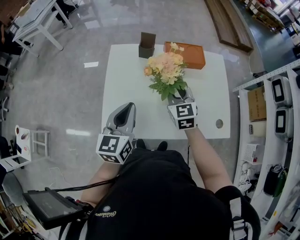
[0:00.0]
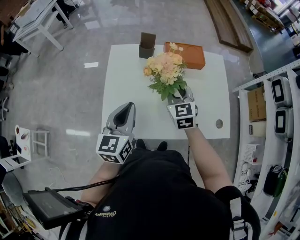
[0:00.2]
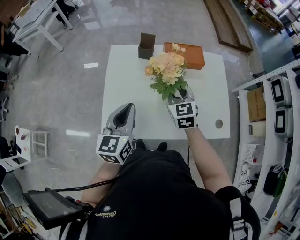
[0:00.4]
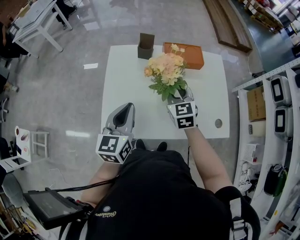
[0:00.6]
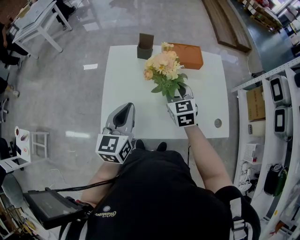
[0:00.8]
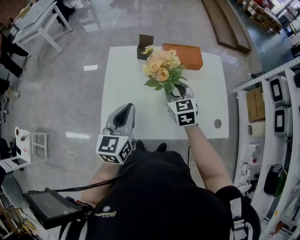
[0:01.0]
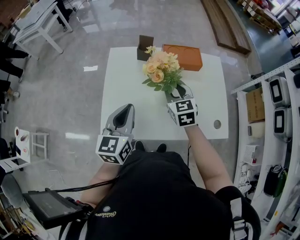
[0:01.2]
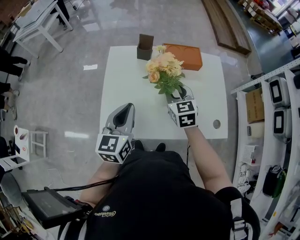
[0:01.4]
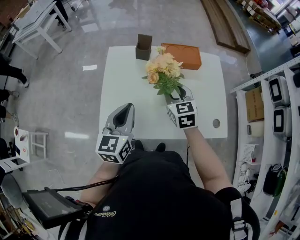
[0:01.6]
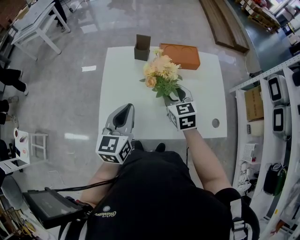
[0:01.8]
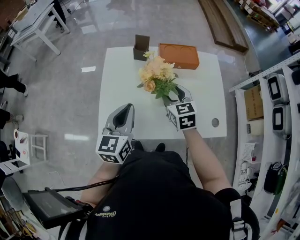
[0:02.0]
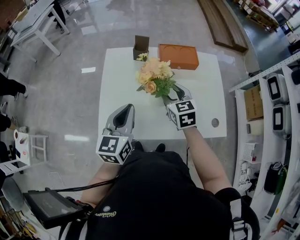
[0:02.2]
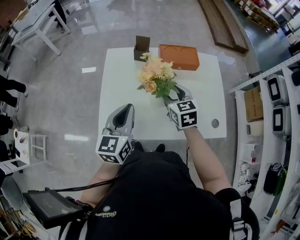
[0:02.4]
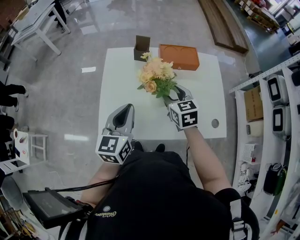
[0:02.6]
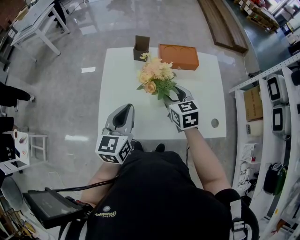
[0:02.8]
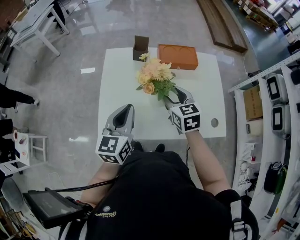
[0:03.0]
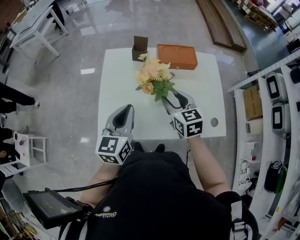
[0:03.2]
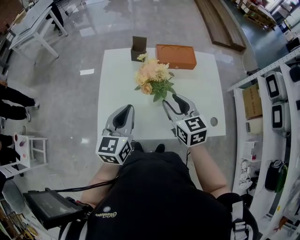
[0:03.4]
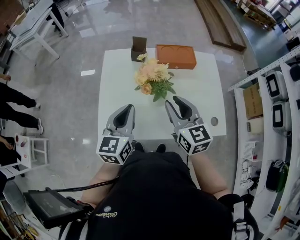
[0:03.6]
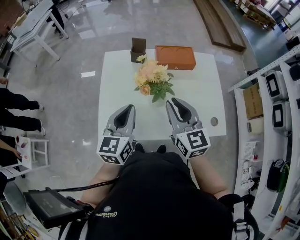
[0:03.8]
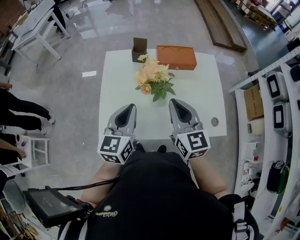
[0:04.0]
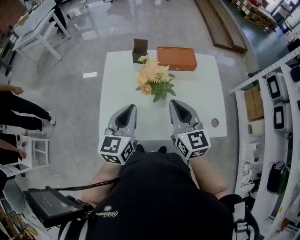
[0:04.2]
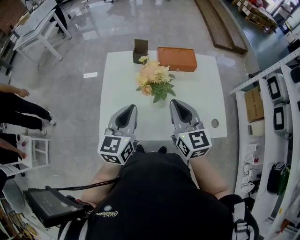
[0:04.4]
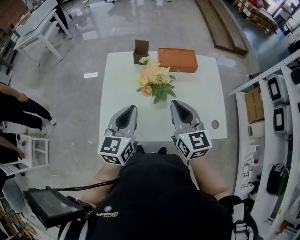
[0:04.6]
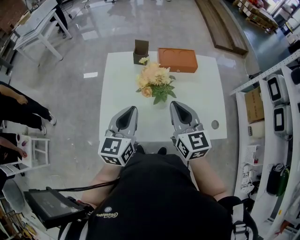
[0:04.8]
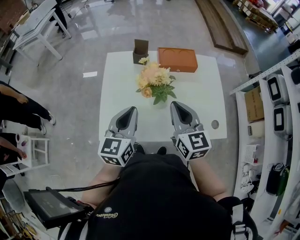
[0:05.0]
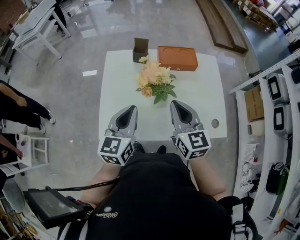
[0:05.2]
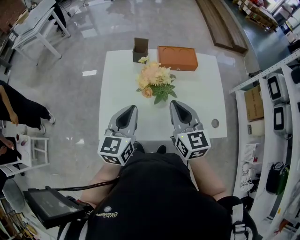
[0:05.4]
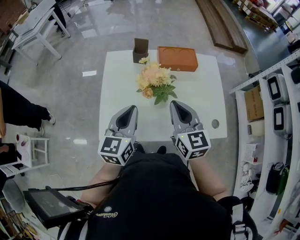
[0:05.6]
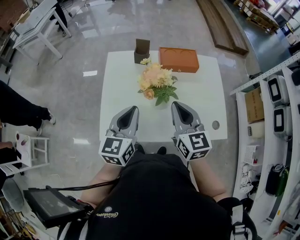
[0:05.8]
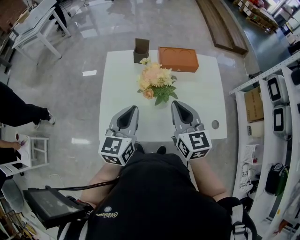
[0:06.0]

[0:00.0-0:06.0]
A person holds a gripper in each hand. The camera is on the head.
0:00.0 to 0:01.6: The right gripper opens its fingers.
0:01.6 to 0:03.0: The grippers move only a little.
0:03.0 to 0:04.4: The right gripper shifts some 10 cm upward and backward, turns by roughly 20 degrees, and closes its fingers.
0:04.4 to 0:06.0: Both grippers stay about where they are.

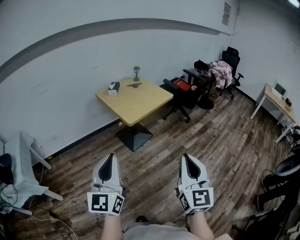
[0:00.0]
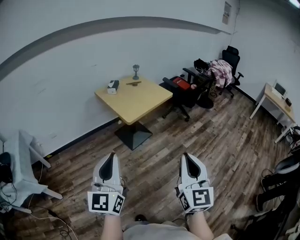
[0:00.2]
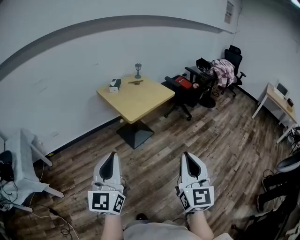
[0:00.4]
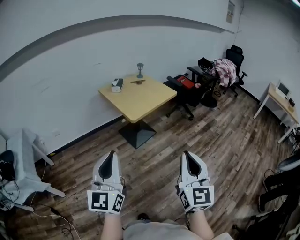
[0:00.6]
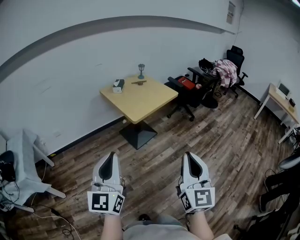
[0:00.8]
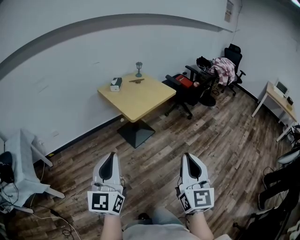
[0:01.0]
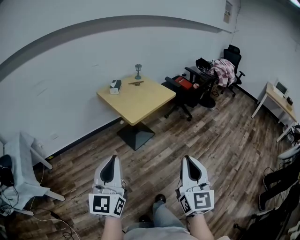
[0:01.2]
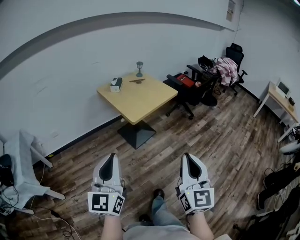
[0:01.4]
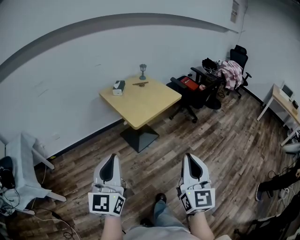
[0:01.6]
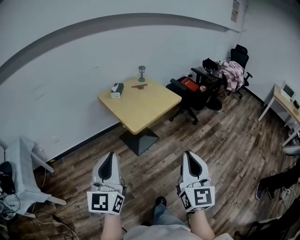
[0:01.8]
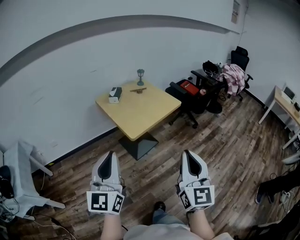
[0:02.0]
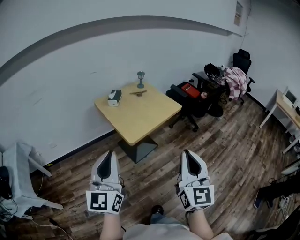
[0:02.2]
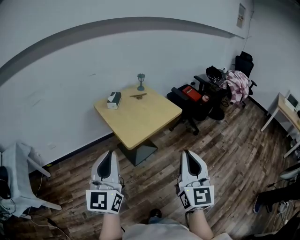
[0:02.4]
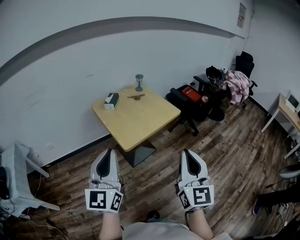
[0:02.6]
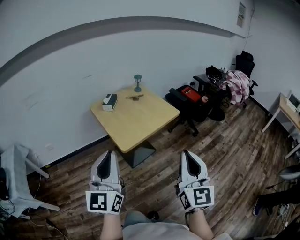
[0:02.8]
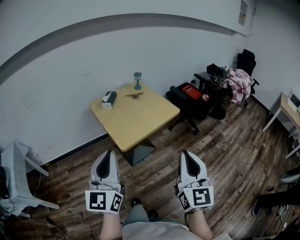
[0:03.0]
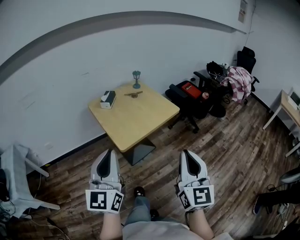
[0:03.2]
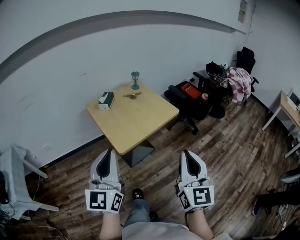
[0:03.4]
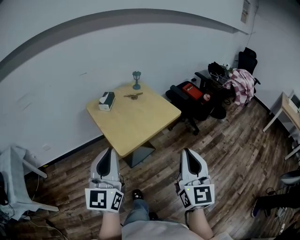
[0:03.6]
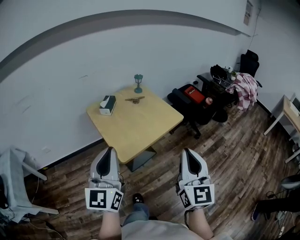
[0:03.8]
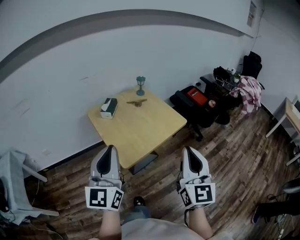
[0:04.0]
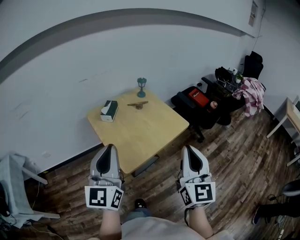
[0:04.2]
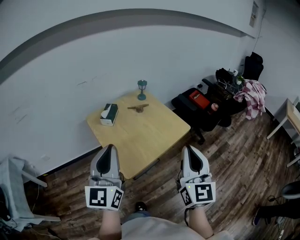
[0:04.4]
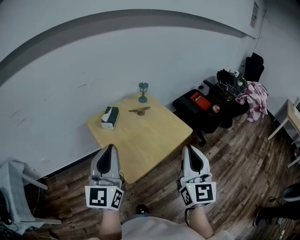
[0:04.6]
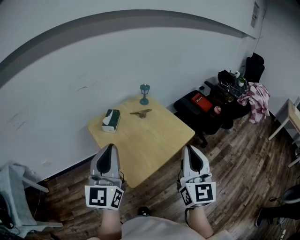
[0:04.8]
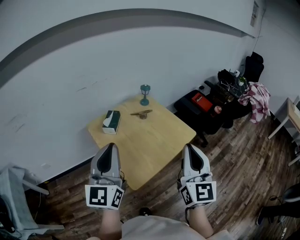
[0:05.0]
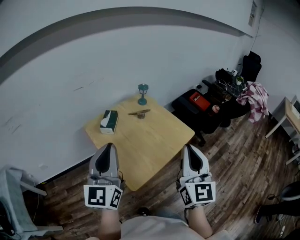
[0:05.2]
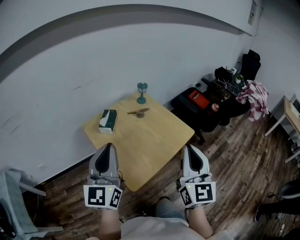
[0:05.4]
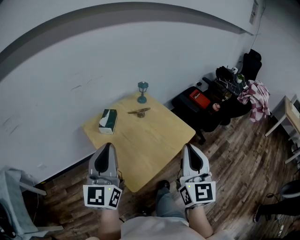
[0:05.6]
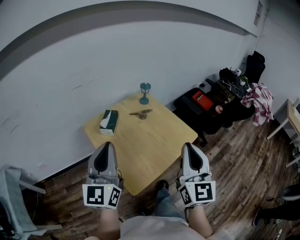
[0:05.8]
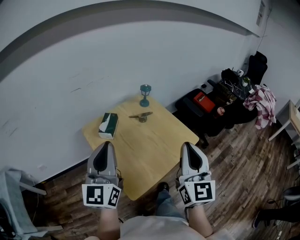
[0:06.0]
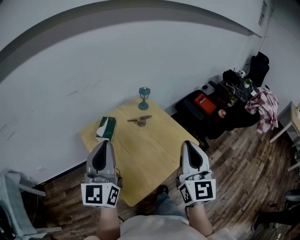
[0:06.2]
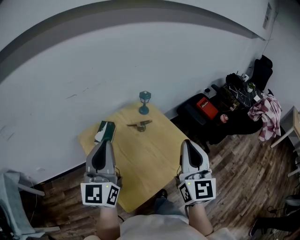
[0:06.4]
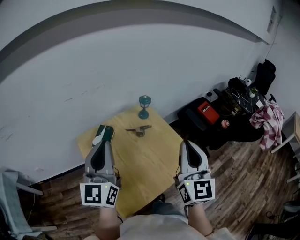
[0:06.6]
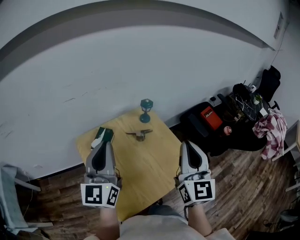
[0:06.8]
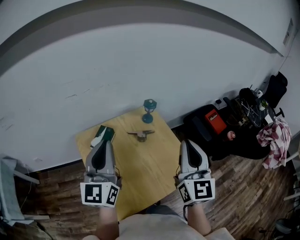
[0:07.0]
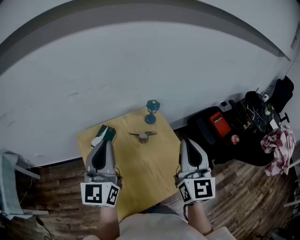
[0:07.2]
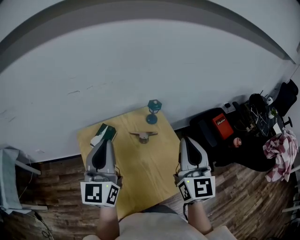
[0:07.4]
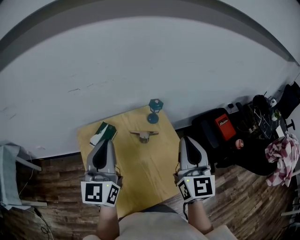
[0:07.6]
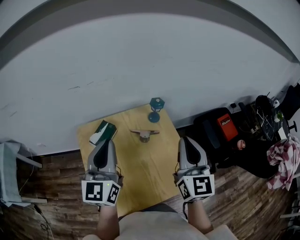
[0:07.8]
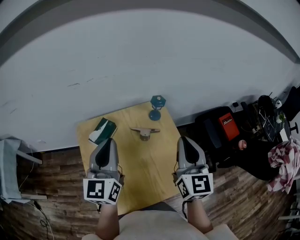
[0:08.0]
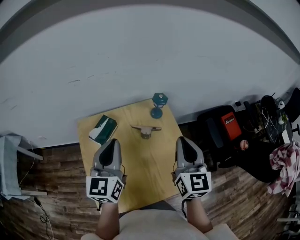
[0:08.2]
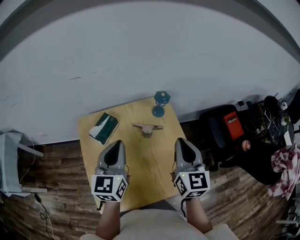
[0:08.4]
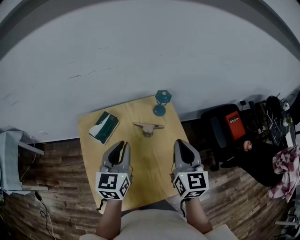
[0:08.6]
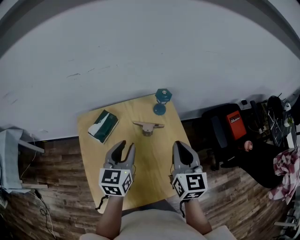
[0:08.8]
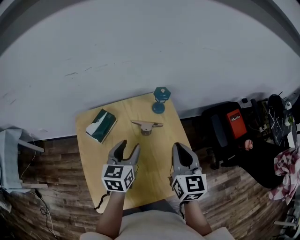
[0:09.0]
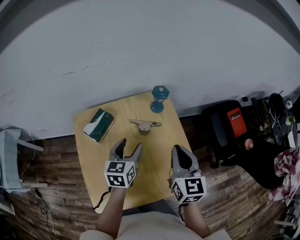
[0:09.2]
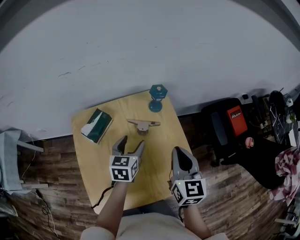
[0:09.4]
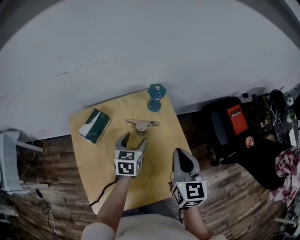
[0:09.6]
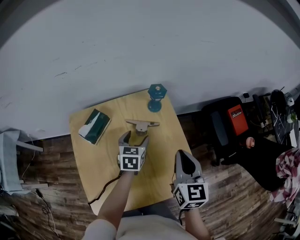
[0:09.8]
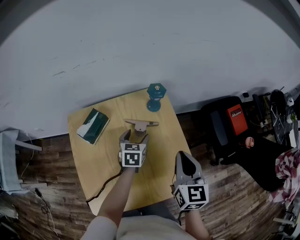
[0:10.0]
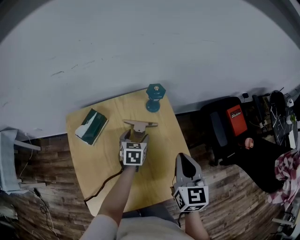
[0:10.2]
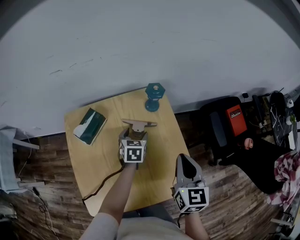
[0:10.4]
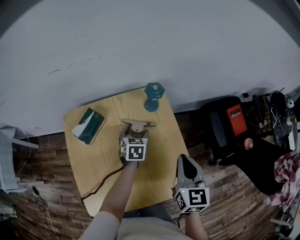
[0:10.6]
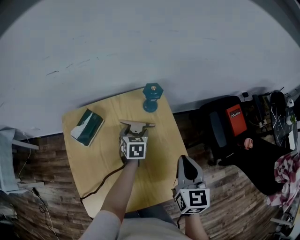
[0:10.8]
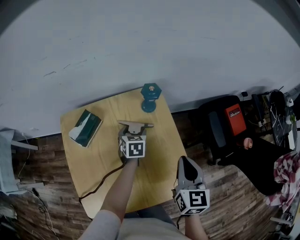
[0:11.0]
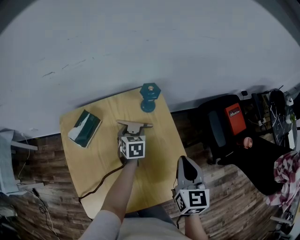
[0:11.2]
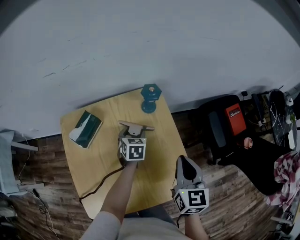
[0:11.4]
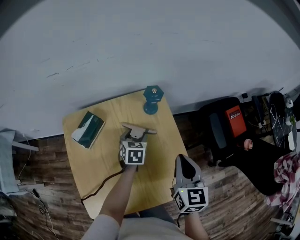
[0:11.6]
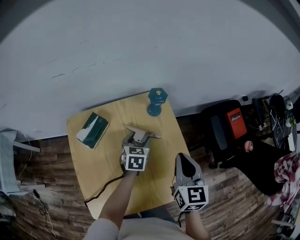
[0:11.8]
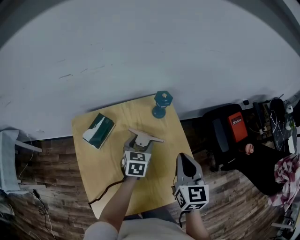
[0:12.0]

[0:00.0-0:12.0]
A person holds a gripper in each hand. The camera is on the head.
0:00.0 to 0:01.6: The grippers both shift forward by some 10 cm.
0:01.6 to 0:03.0: Both grippers travel together forward and to the right, approximately 20 cm.
0:03.0 to 0:04.4: The grippers both shift forward by some 25 cm.
0:04.4 to 0:06.0: The two grippers go some 15 cm forward.
0:06.0 to 0:07.6: The grippers both shift forward by some 25 cm.
0:07.6 to 0:09.0: The right gripper travels downward by some 15 cm, and turns by approximately 20 degrees. Meanwhile the left gripper travels downward and to the right by approximately 20 cm, tilts its fingers approximately 30 degrees downward, and opens.
0:09.0 to 0:10.4: The right gripper is displaced to the right by about 5 cm. The left gripper goes some 20 cm downward and forward, changes its angle by approximately 20 degrees, and opens its fingers.
0:10.4 to 0:12.0: The left gripper travels upward by approximately 5 cm.

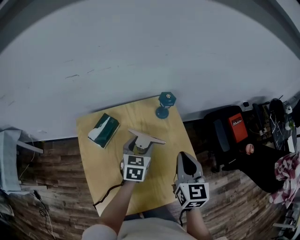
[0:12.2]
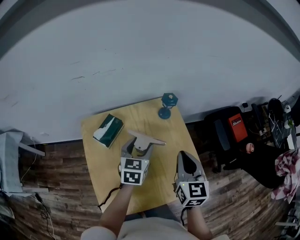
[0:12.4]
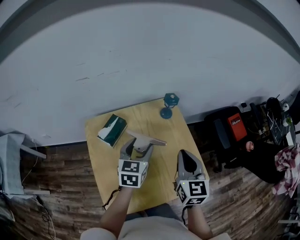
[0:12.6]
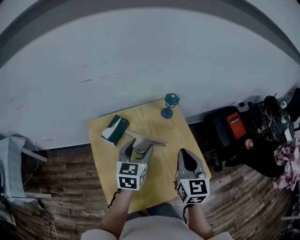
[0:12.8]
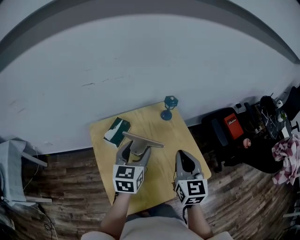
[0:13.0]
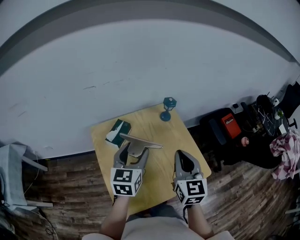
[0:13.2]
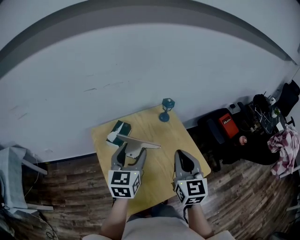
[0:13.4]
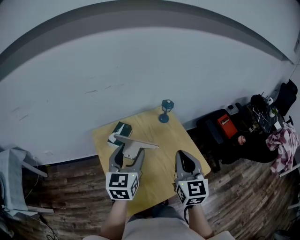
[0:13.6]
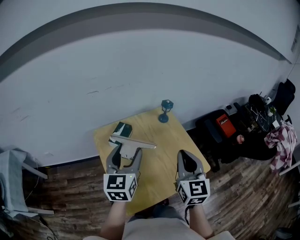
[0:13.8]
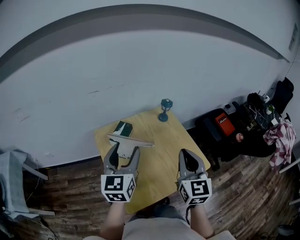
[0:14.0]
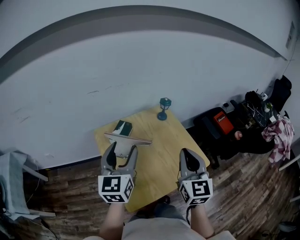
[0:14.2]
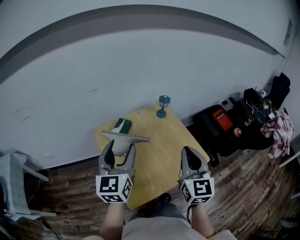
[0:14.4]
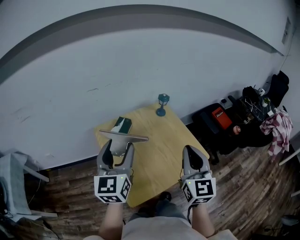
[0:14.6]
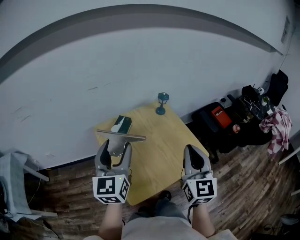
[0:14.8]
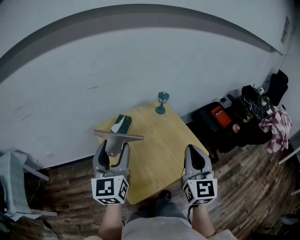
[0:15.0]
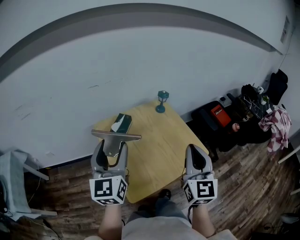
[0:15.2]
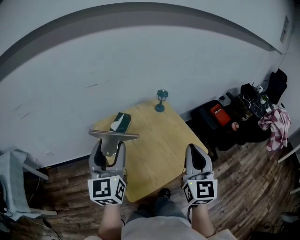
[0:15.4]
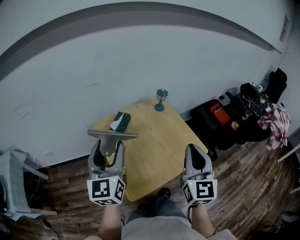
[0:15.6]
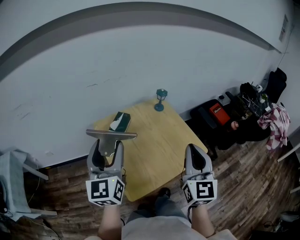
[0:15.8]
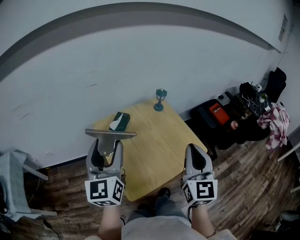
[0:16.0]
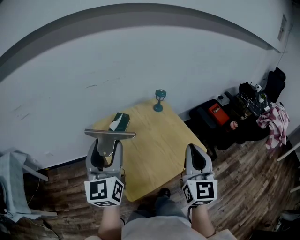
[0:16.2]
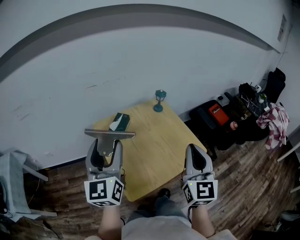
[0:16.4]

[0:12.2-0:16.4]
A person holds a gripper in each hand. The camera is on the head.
0:12.2 to 0:13.6: The right gripper shifts roughly 20 cm backward, upward and to the left, while the left gripper moves upward, backward and to the left, some 25 cm, and swivels roughly 20 degrees.
0:13.6 to 0:15.0: The right gripper shifts about 10 cm backward and upward; the left gripper shifts roughly 15 cm backward, upward and to the left.
0:15.0 to 0:16.4: The grippers move only a little.

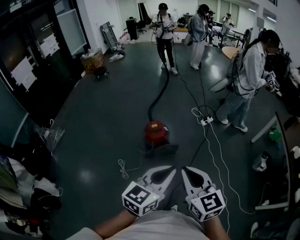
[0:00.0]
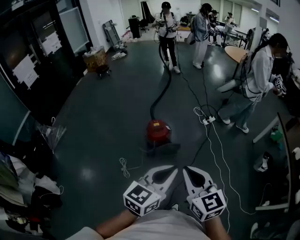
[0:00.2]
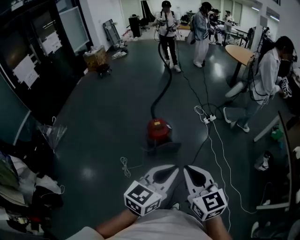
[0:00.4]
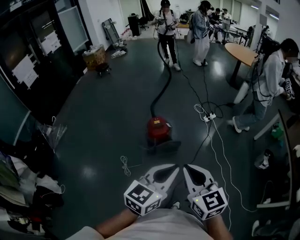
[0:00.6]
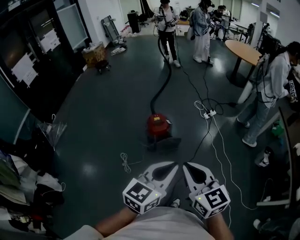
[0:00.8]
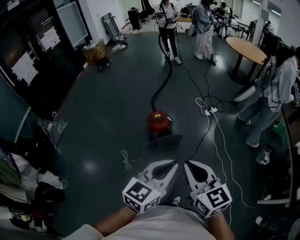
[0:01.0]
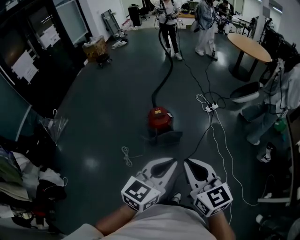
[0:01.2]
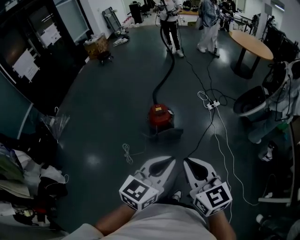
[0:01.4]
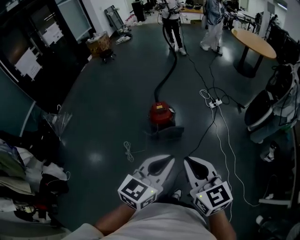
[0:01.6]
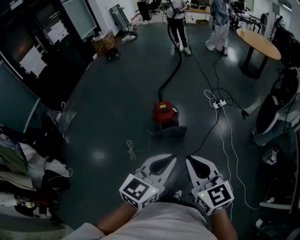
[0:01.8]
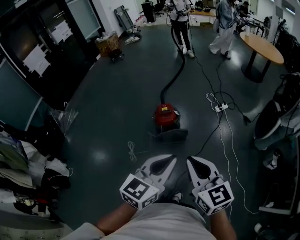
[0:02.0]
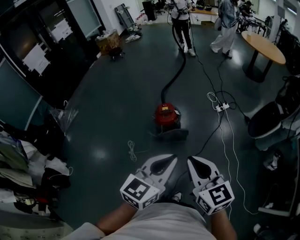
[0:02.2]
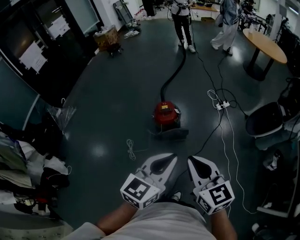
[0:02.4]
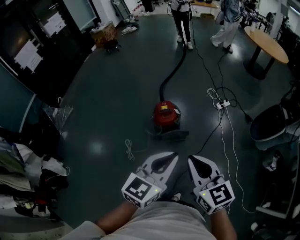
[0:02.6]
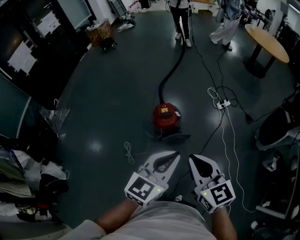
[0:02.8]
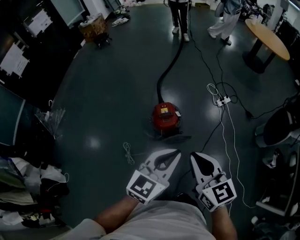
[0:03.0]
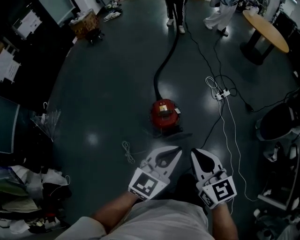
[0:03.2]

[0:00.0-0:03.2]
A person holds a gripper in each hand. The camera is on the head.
0:00.0 to 0:01.6: The grippers move only a little.
0:01.6 to 0:03.2: The grippers both shift forward by approximately 30 cm.
